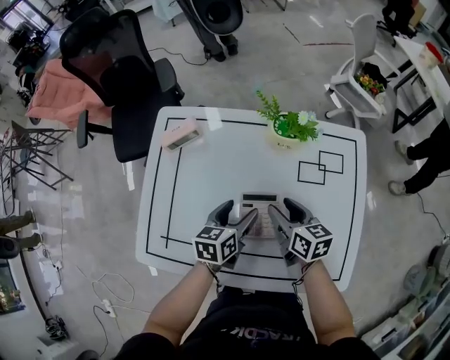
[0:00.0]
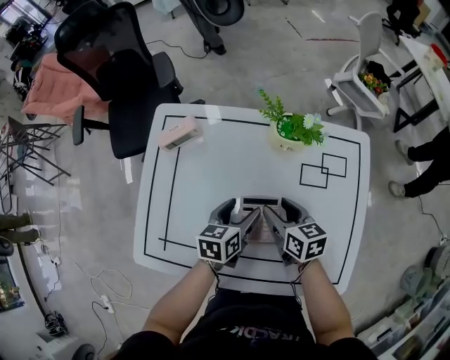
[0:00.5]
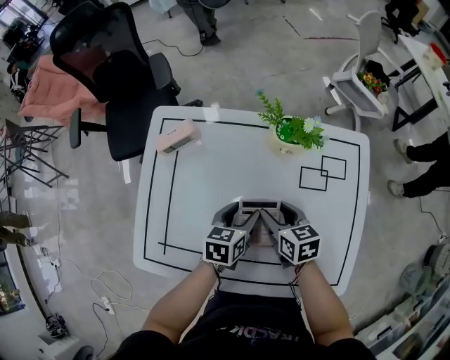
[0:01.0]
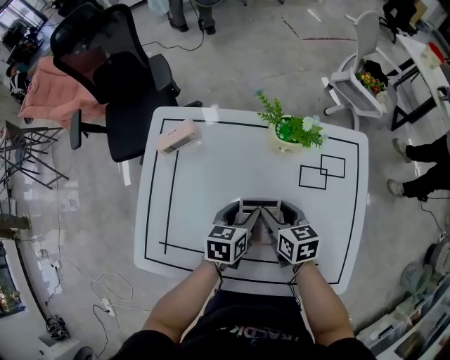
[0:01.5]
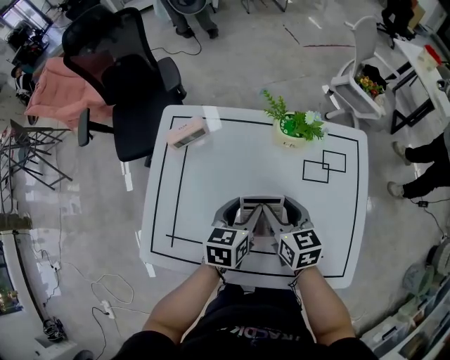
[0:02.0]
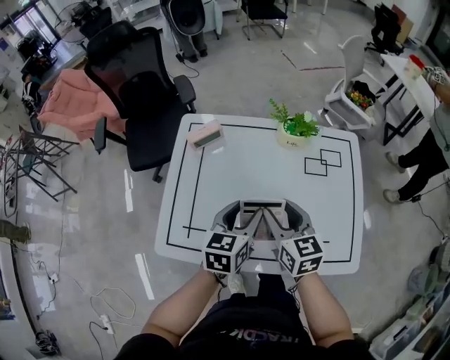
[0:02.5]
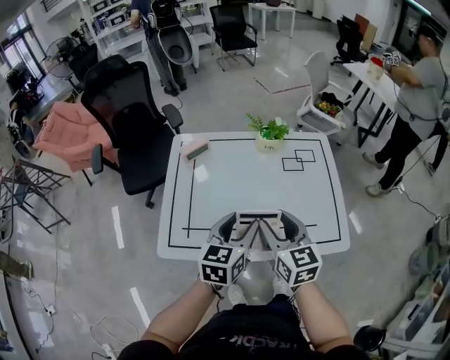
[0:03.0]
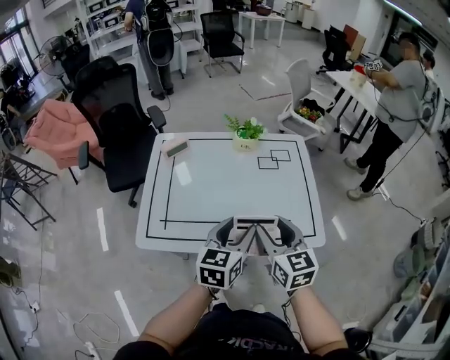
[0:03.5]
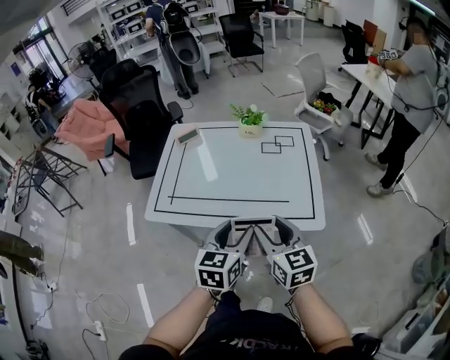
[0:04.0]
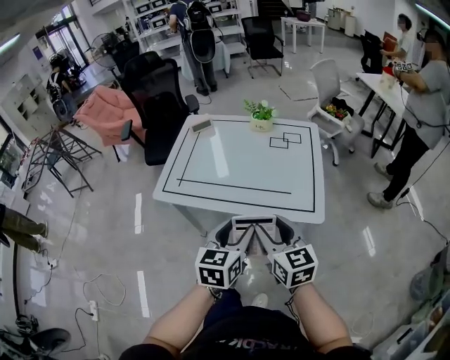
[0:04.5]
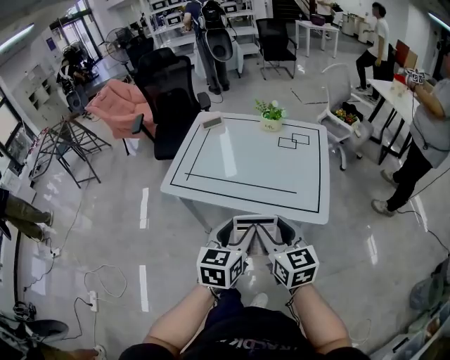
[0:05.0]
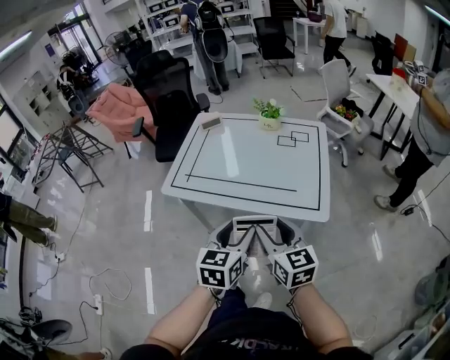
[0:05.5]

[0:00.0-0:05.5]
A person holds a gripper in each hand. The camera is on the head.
0:00.0 to 0:02.0: The right gripper moves roughly 5 cm.
0:02.0 to 0:03.5: Both grippers travel together backward and upward, about 30 cm. The left gripper changes its angle by approximately 20 degrees, while the right gripper swivels about 20 degrees.
0:03.5 to 0:05.5: Both grippers move backward, approximately 20 cm.

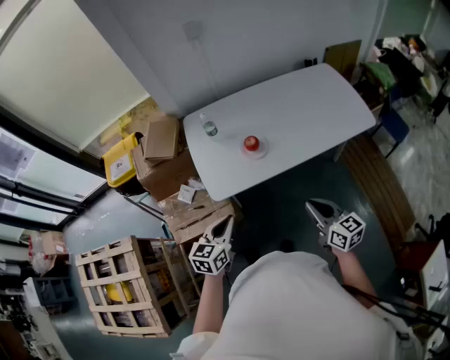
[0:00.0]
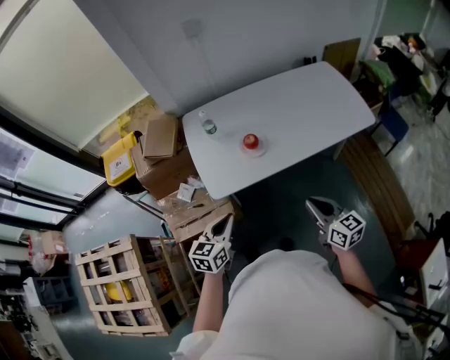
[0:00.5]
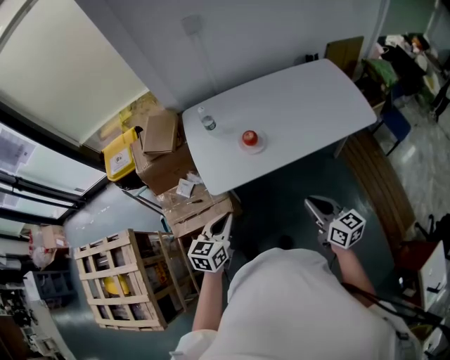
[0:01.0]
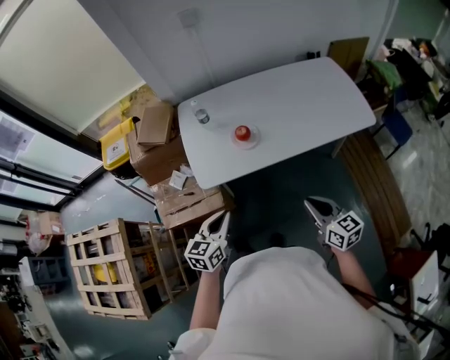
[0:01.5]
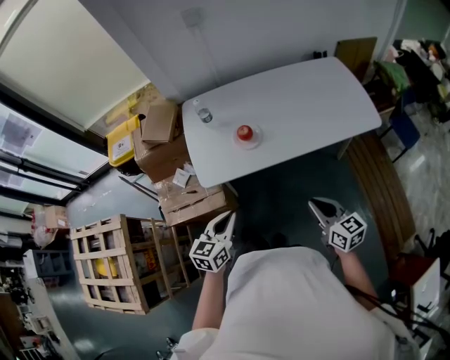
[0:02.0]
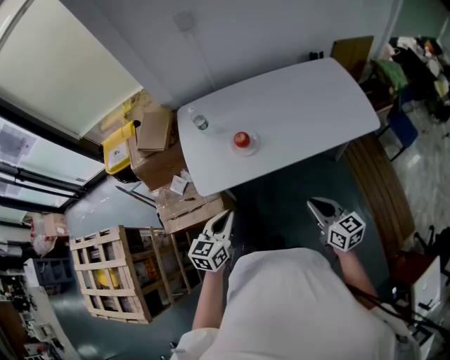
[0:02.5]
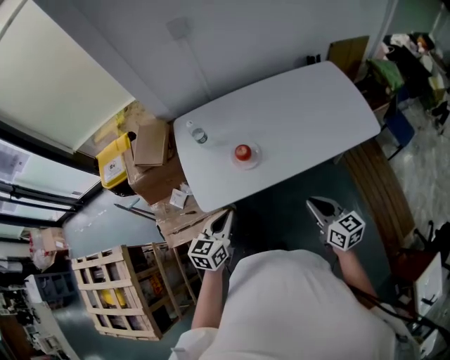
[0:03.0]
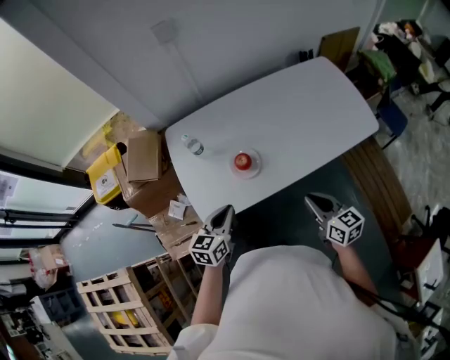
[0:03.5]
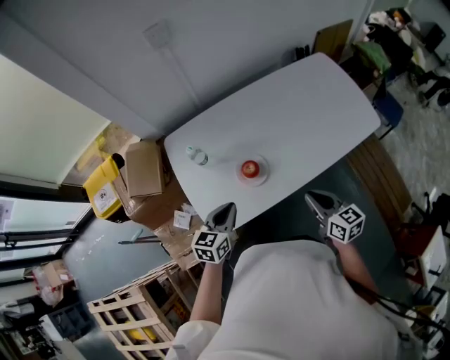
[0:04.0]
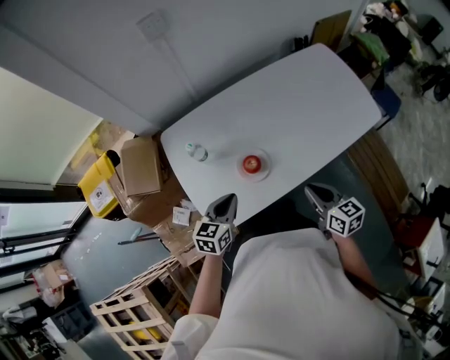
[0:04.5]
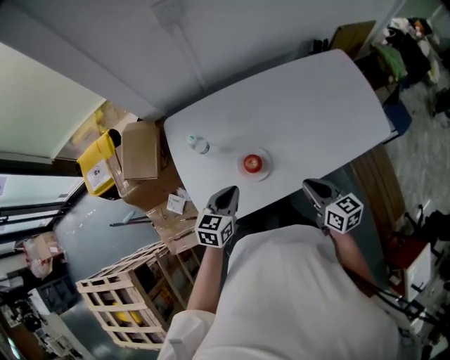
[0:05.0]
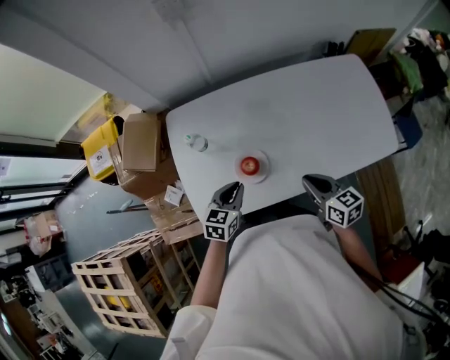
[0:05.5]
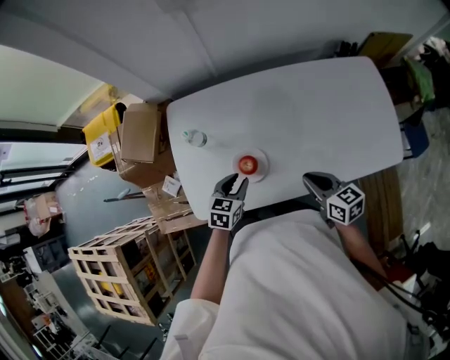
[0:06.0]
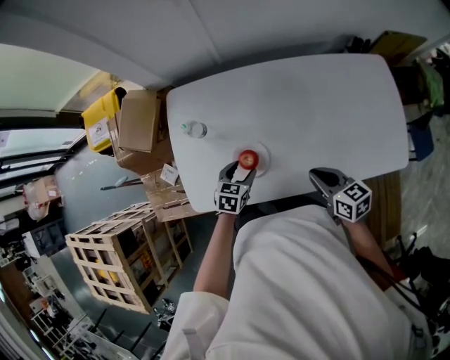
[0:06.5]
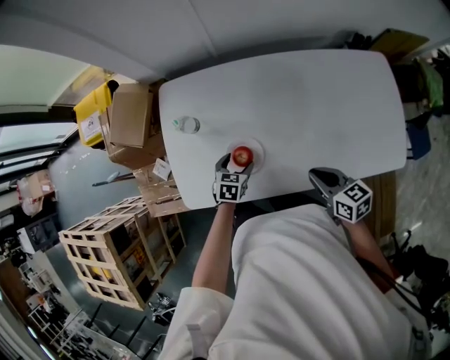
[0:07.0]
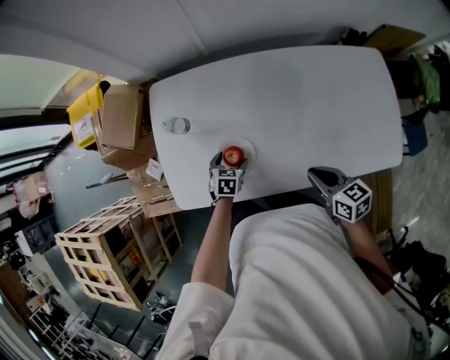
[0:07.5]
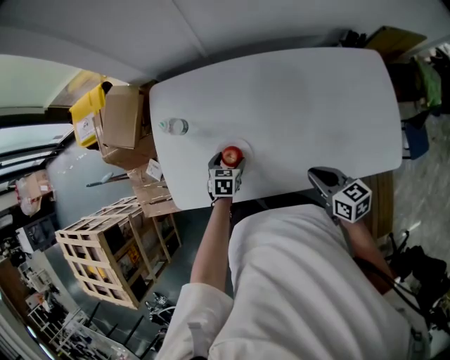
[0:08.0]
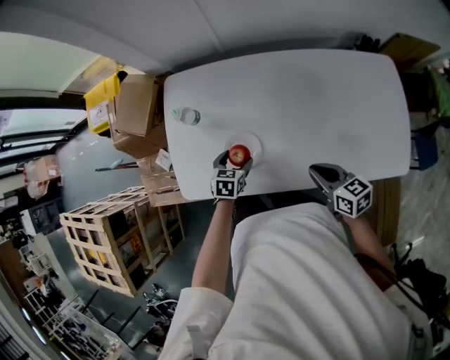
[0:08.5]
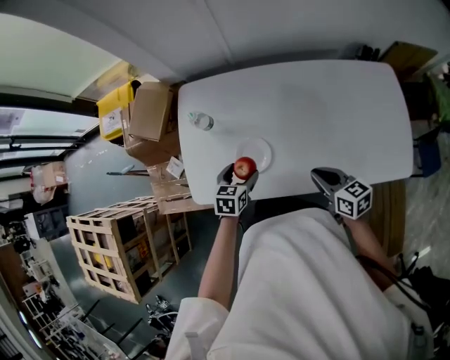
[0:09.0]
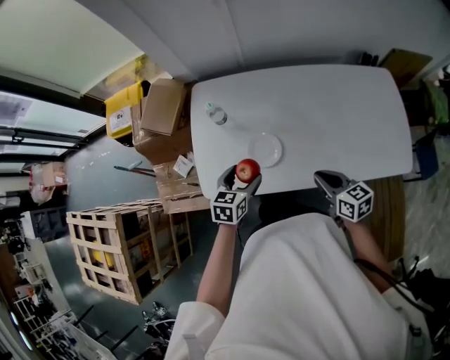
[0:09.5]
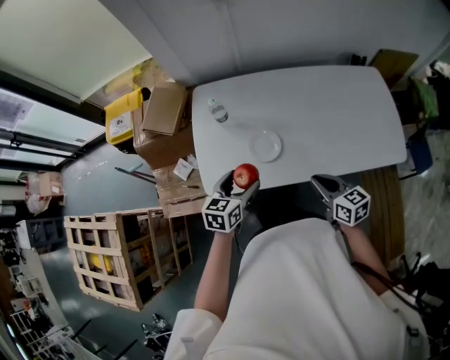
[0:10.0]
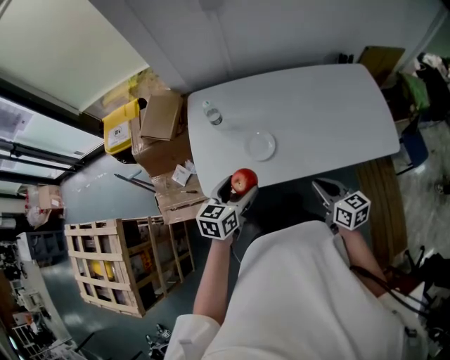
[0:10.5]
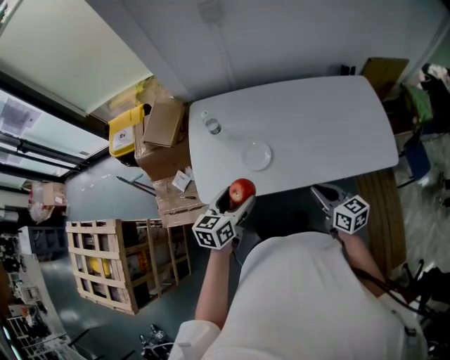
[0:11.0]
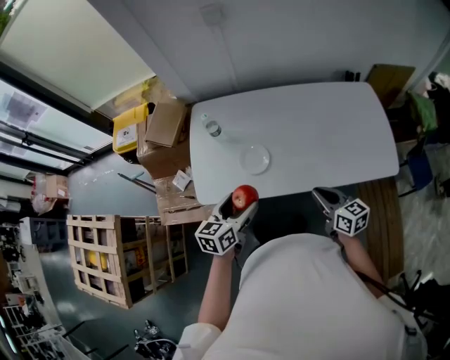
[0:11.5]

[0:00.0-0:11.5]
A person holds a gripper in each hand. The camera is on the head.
0:00.0 to 0:02.0: The two grippers go about 10 cm to the right.
0:02.0 to 0:04.0: The two grippers go roughly 25 cm forward.
0:04.0 to 0:06.0: The left gripper heads downward, forward and to the right, covering roughly 15 cm; the right gripper heads forward, covering about 15 cm, and swivels approximately 20 degrees.
0:06.0 to 0:07.5: The left gripper shifts about 15 cm downward, and opens, while the right gripper shifts some 5 cm to the right.
0:07.5 to 0:09.5: The left gripper moves upward, some 20 cm, and rotates some 20 degrees; the right gripper is displaced to the left by approximately 5 cm.
0:09.5 to 0:11.5: The left gripper shifts approximately 15 cm backward and upward, while the right gripper travels backward by about 10 cm.

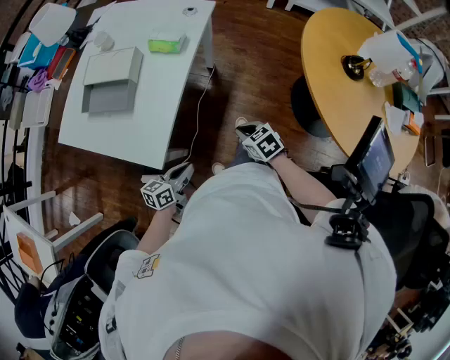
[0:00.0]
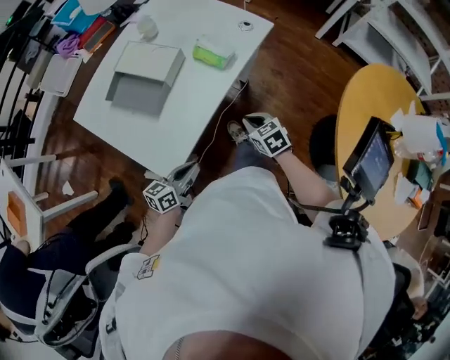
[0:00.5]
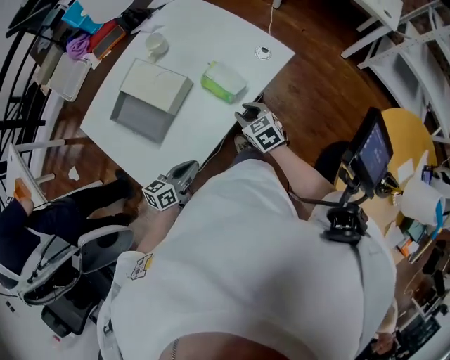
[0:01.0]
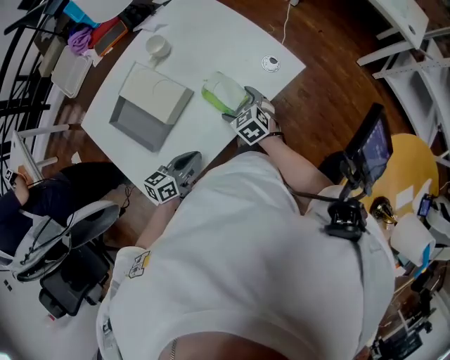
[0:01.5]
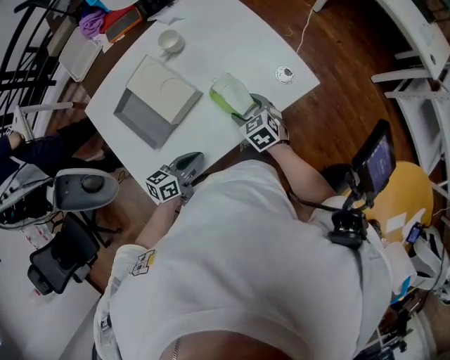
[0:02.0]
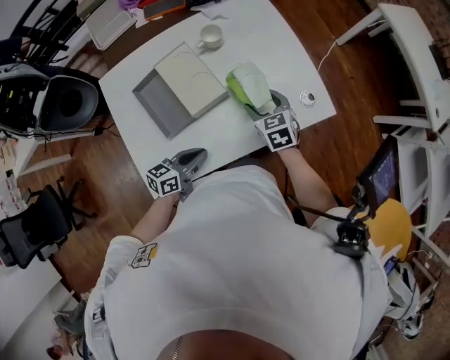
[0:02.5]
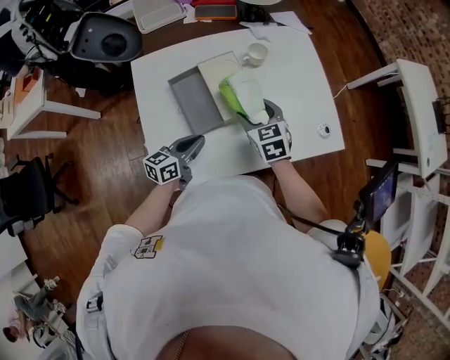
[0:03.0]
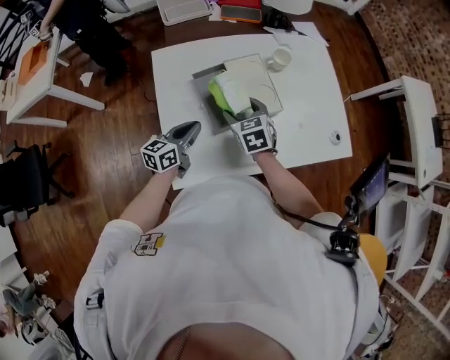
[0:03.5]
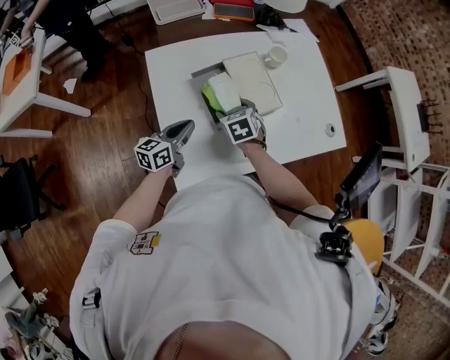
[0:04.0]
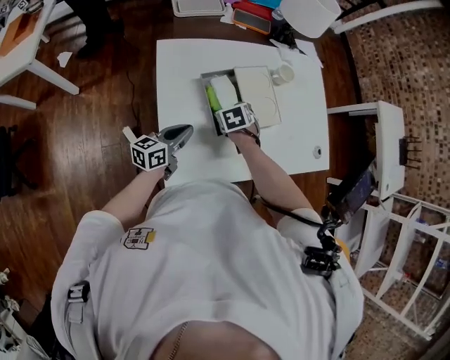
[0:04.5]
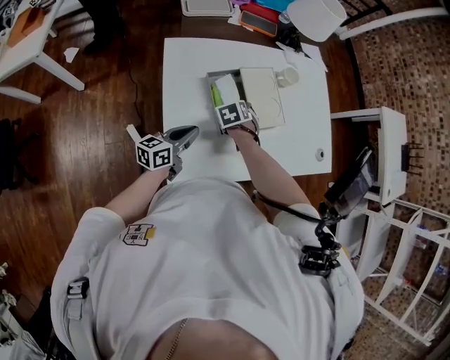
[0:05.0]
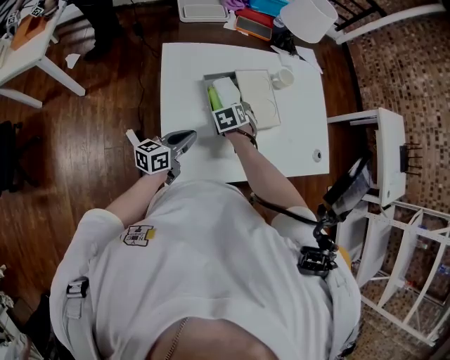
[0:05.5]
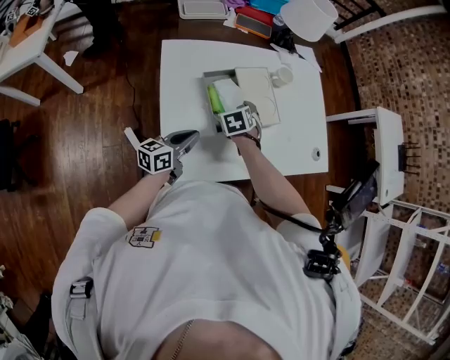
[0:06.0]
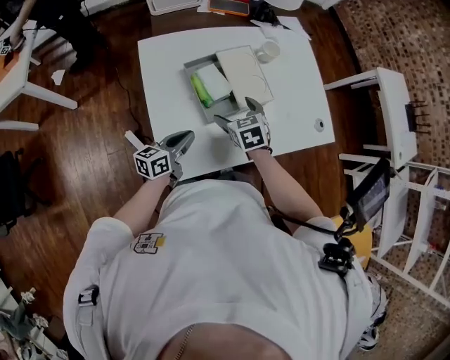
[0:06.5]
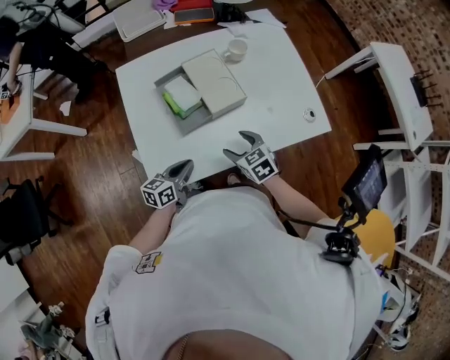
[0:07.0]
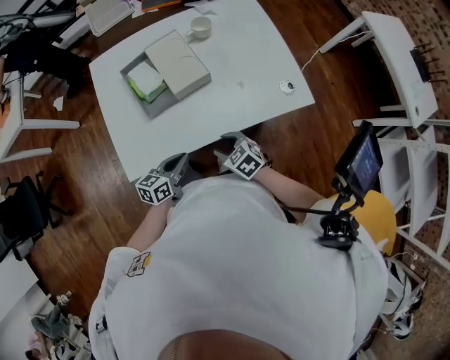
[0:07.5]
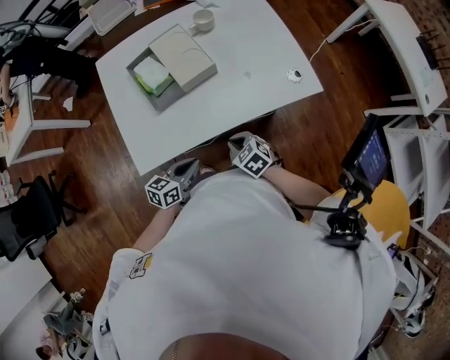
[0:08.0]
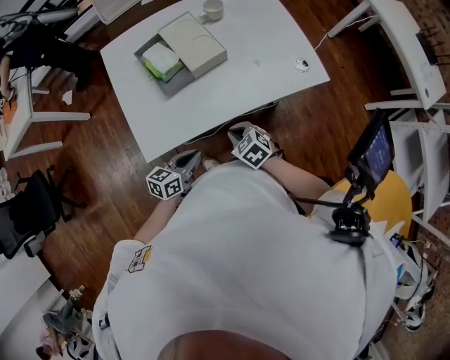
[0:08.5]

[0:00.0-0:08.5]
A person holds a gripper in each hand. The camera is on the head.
0:00.0 to 0:02.0: Both grippers travel together forward, about 35 cm. The left gripper changes its angle by some 30 degrees; the right gripper swivels some 30 degrees, and opens up.
0:02.0 to 0:04.0: The grippers both shift to the left by about 30 cm. The left gripper rotates approximately 30 degrees.
0:04.0 to 0:06.5: The left gripper goes some 5 cm backward, while the right gripper ends up some 5 cm from where it was.
0:06.5 to 0:08.5: The two grippers go roughly 25 cm backward and to the right. The right gripper closes its fingers.

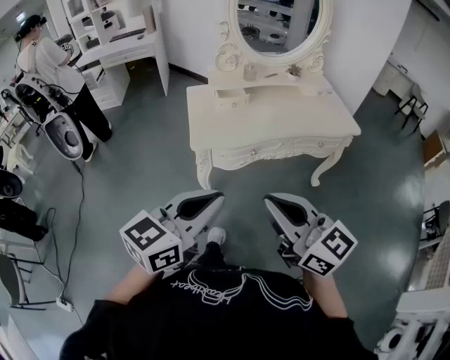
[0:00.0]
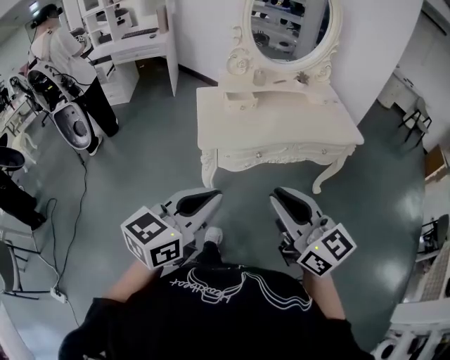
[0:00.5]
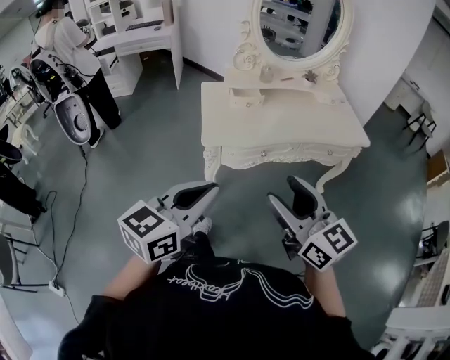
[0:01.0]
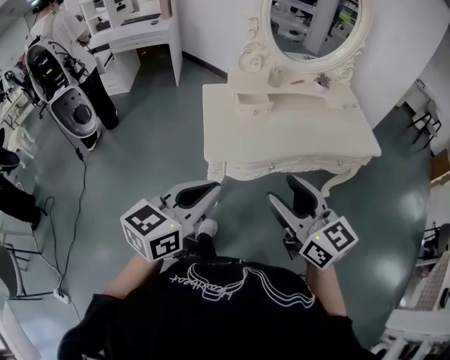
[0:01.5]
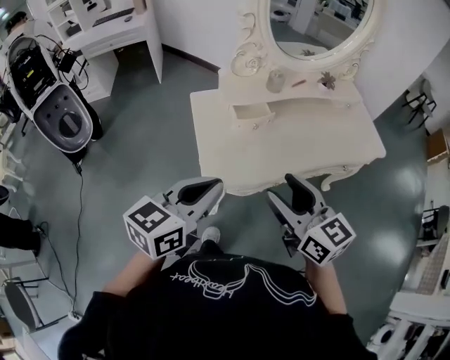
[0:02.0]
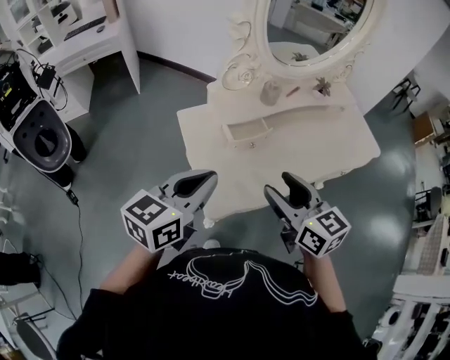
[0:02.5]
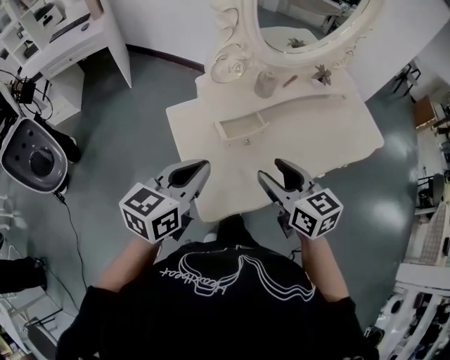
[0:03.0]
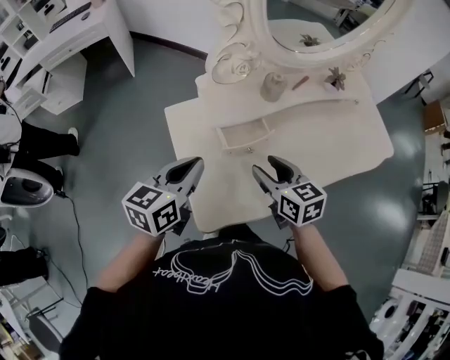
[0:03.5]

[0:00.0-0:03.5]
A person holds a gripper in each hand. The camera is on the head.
0:00.0 to 0:02.0: Both grippers travel together forward, about 30 cm. The right gripper opens its fingers.
0:02.0 to 0:03.5: Both grippers travel together forward and downward, approximately 25 cm. The right gripper changes its angle by approximately 20 degrees.
